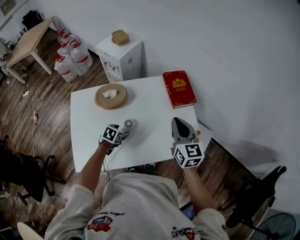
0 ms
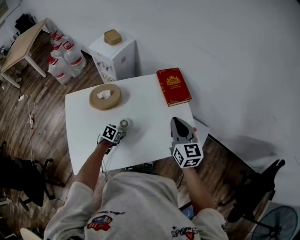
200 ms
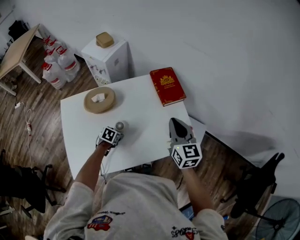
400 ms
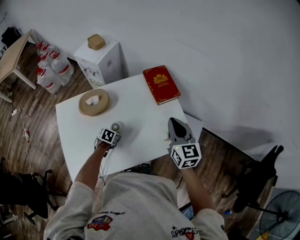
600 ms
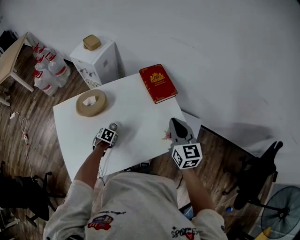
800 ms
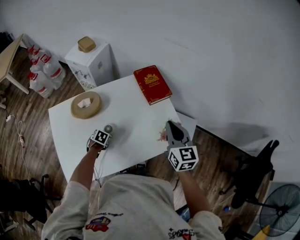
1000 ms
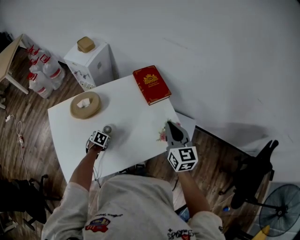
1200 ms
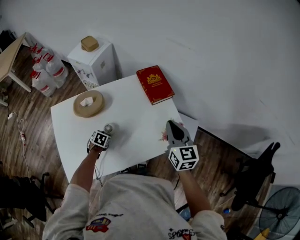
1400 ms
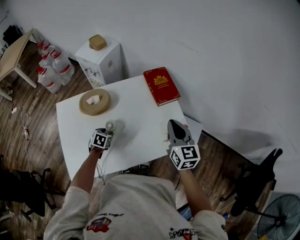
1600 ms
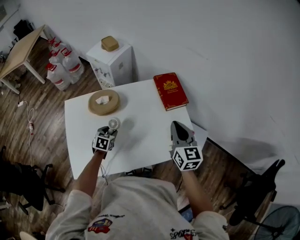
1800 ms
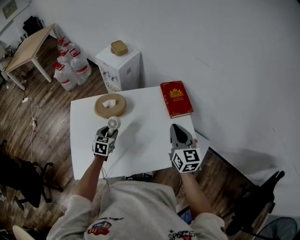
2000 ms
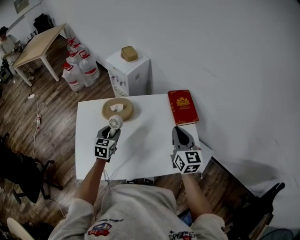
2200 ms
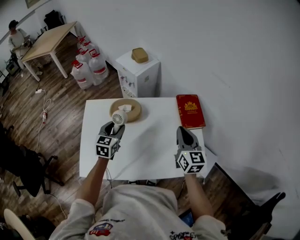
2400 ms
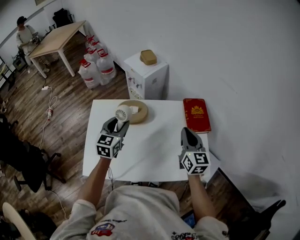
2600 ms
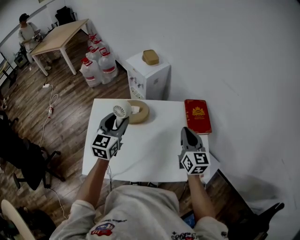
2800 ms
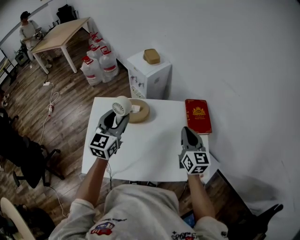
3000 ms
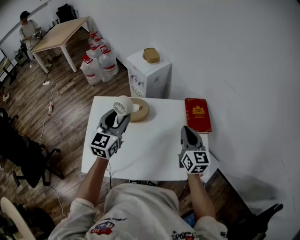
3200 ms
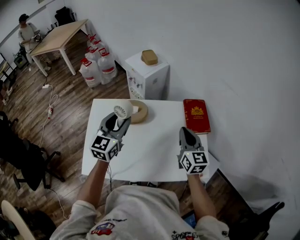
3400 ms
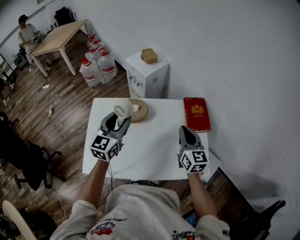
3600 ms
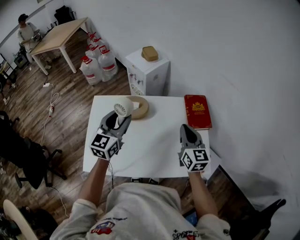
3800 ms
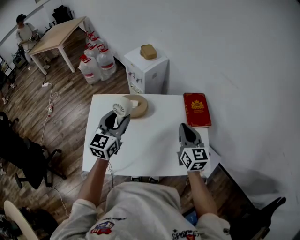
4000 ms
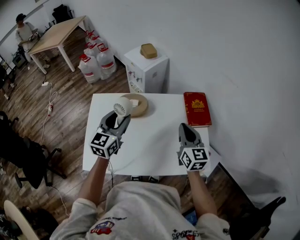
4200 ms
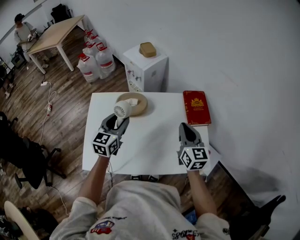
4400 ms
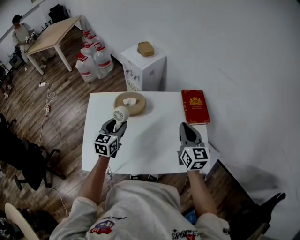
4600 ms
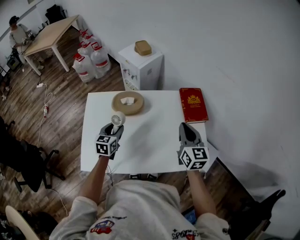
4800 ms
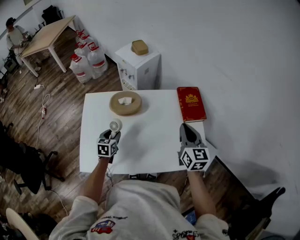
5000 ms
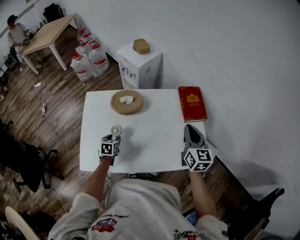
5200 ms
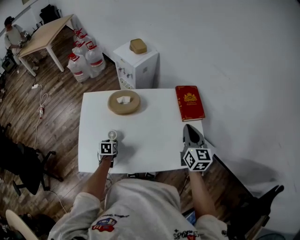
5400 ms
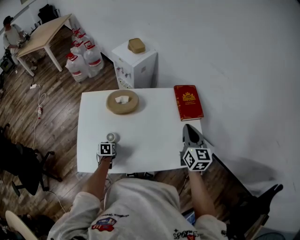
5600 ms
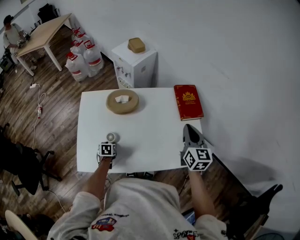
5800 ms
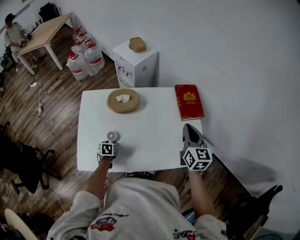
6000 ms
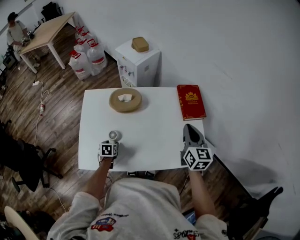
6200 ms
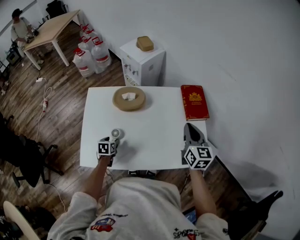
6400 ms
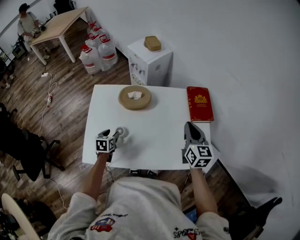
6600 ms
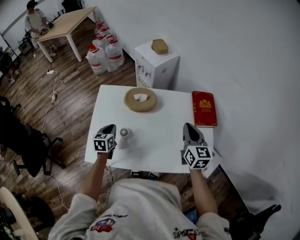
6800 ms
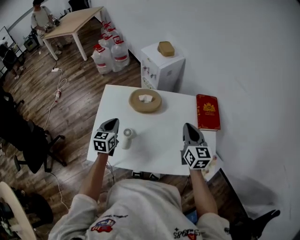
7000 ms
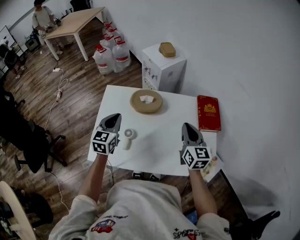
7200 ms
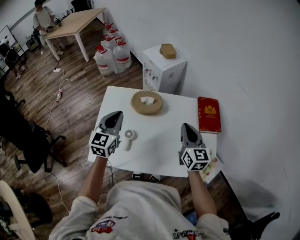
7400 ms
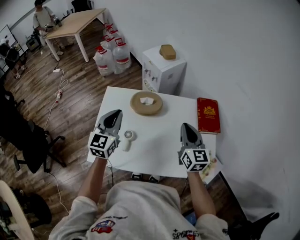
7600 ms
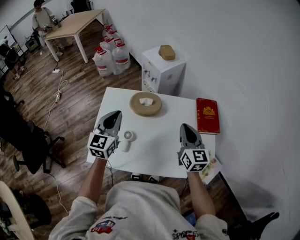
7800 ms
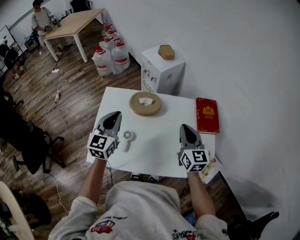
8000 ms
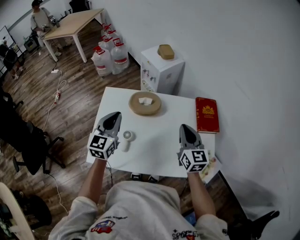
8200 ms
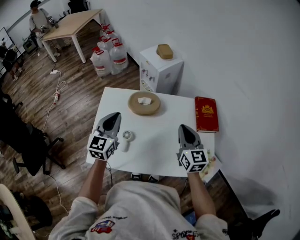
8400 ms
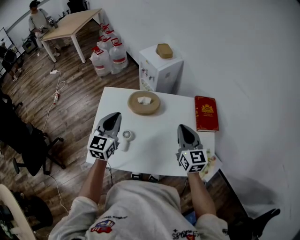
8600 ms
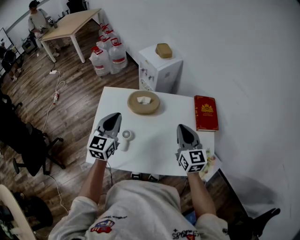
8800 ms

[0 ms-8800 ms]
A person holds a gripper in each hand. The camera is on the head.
0 ms to 1400 ms: The left gripper ends up about 5 cm from where it was, and closes, while the right gripper shifts by approximately 10 cm.
1400 ms to 3000 ms: The right gripper heads to the left and forward, covering approximately 15 cm; the left gripper travels upward by roughly 40 cm, and points its fingers approximately 60 degrees further upward.
3000 ms to 4400 ms: The left gripper moves downward, some 5 cm.
4400 ms to 5800 ms: The left gripper is displaced downward by some 30 cm, and tilts its fingers roughly 40 degrees downward. The right gripper moves to the right, roughly 5 cm.
5800 ms to 7400 ms: The right gripper shifts approximately 10 cm to the left; the left gripper moves upward, approximately 35 cm, points its fingers approximately 50 degrees further upward, and closes its fingers.
7400 ms to 8800 ms: The grippers make only small movements.

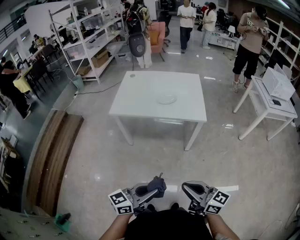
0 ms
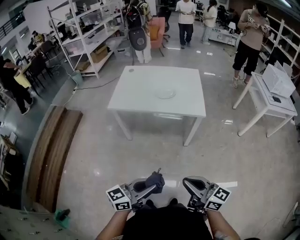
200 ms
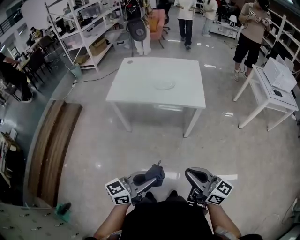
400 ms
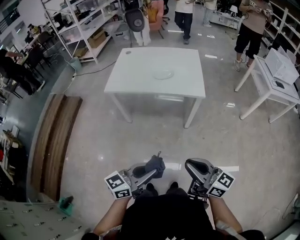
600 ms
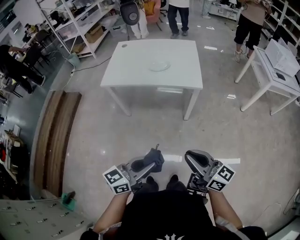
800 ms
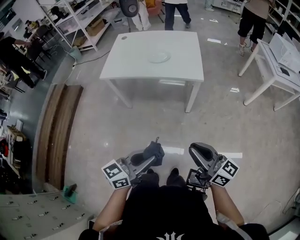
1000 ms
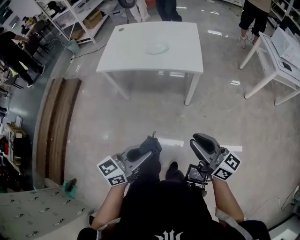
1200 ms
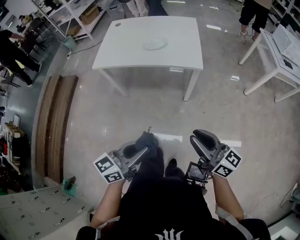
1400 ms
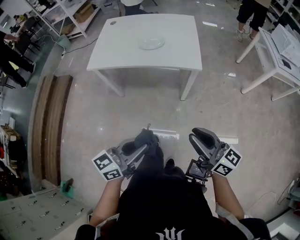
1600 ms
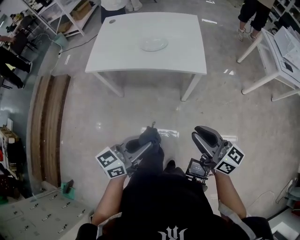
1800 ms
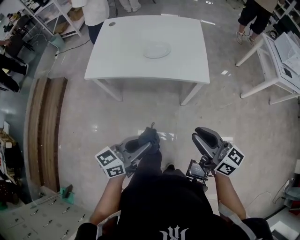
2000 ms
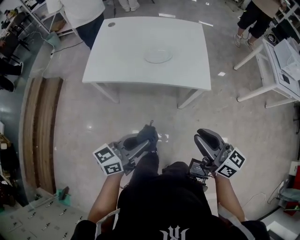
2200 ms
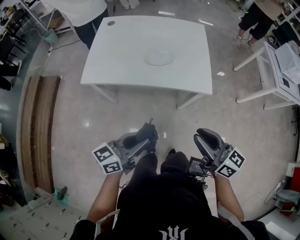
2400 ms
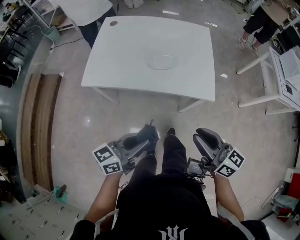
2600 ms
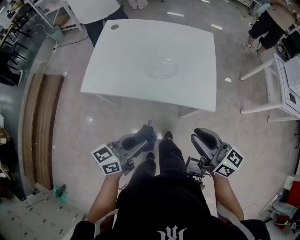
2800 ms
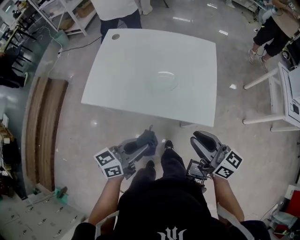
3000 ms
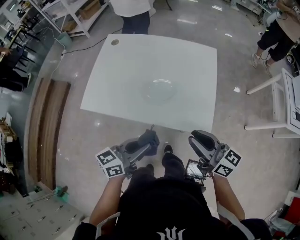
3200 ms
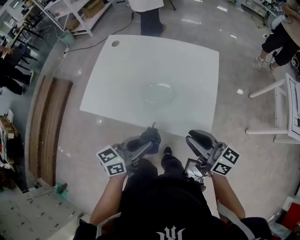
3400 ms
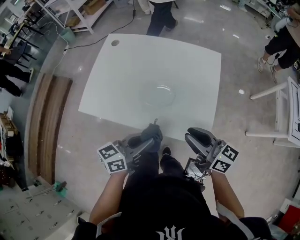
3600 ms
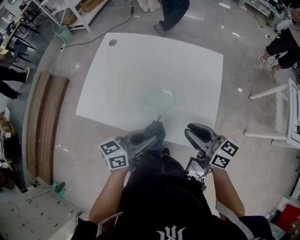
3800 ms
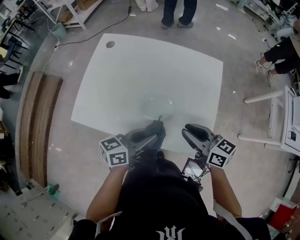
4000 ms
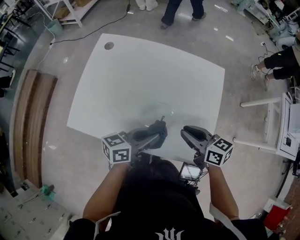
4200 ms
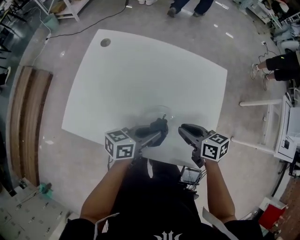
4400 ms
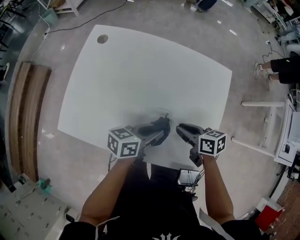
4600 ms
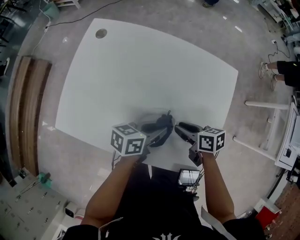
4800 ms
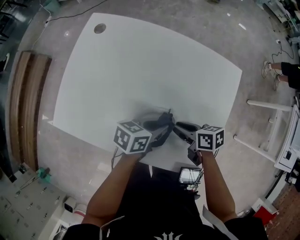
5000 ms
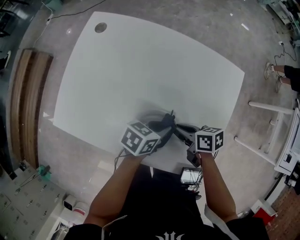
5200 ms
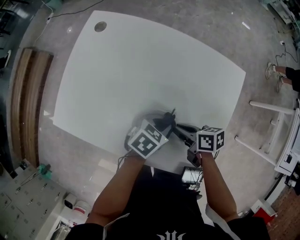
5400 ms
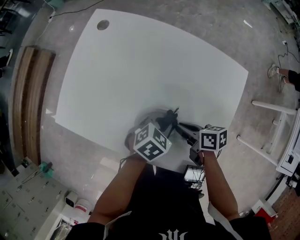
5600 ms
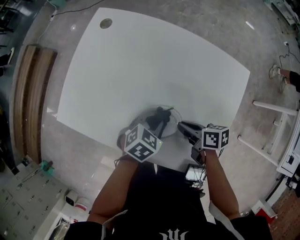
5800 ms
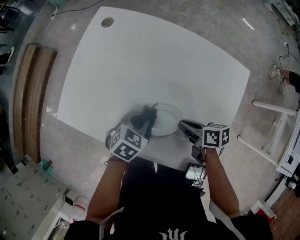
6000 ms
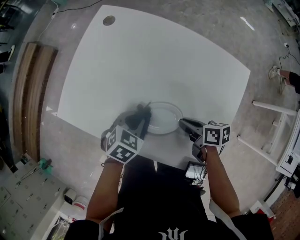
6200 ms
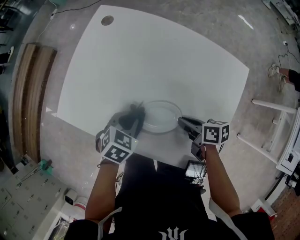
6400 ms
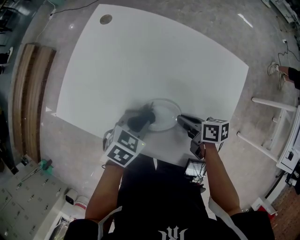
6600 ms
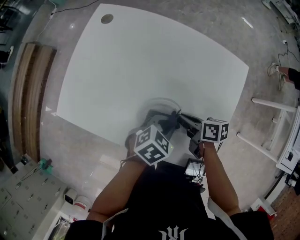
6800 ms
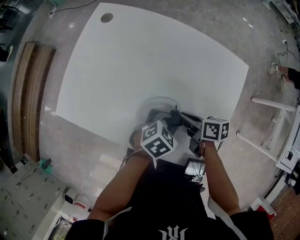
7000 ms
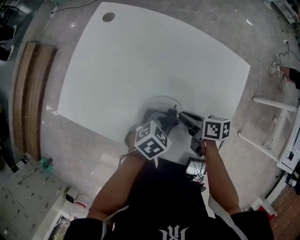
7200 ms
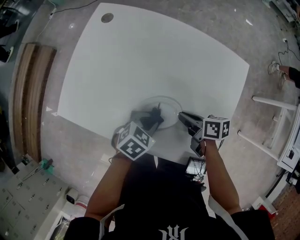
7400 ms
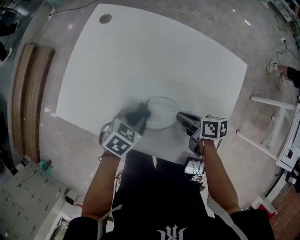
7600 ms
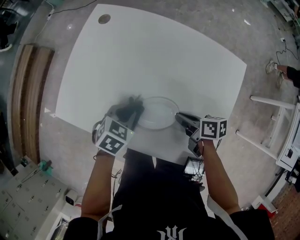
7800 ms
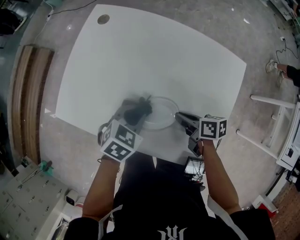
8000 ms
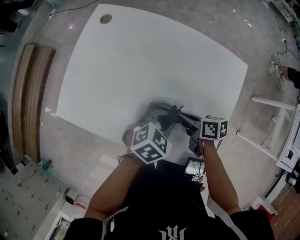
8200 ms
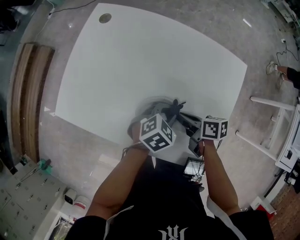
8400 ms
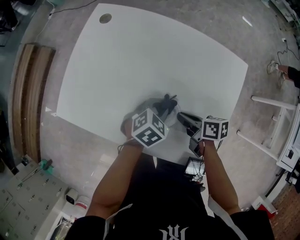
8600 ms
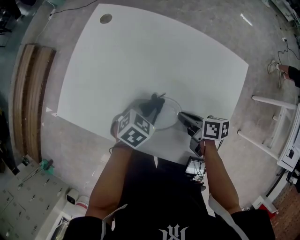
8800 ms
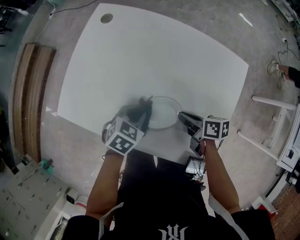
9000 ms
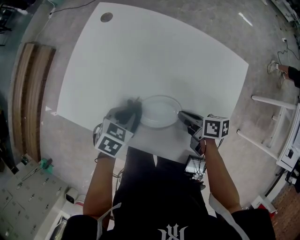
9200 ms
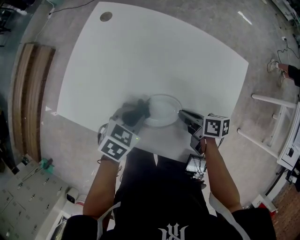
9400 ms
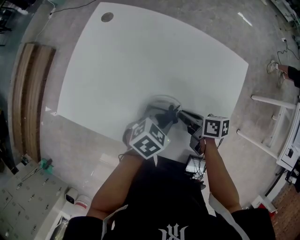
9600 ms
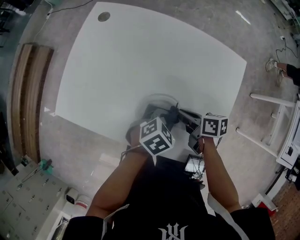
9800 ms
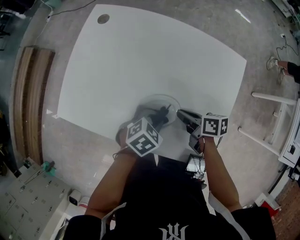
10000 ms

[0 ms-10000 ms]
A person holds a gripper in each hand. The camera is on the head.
0 ms to 1400 ms: The right gripper heads to the right and forward, covering about 15 cm. The left gripper heads to the right and forward, covering approximately 10 cm.
1400 ms to 2800 ms: Both grippers move forward, approximately 35 cm.
2800 ms to 4200 ms: Both grippers move forward, approximately 35 cm. The right gripper rotates some 20 degrees.
4200 ms to 5800 ms: Both grippers travel together downward, some 15 cm. The left gripper points its fingers about 50 degrees further downward. The right gripper rotates roughly 30 degrees.

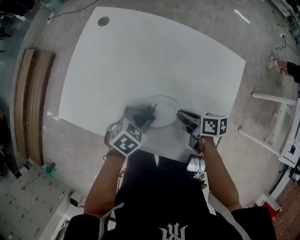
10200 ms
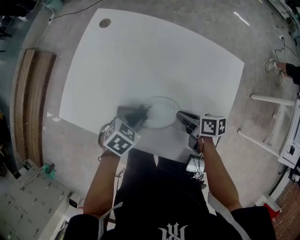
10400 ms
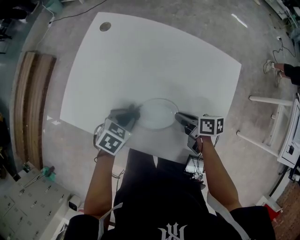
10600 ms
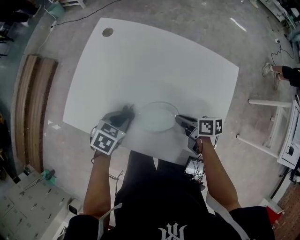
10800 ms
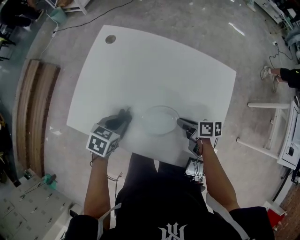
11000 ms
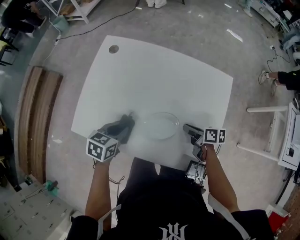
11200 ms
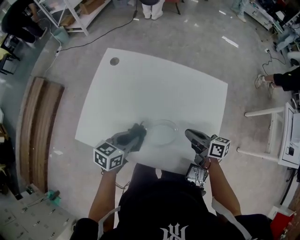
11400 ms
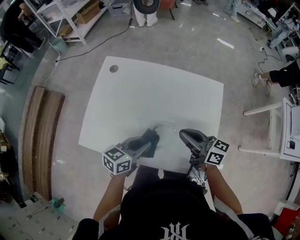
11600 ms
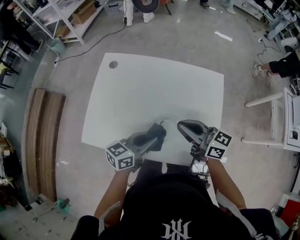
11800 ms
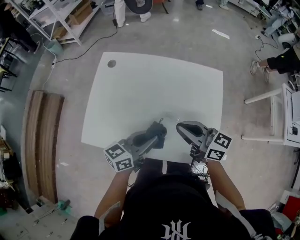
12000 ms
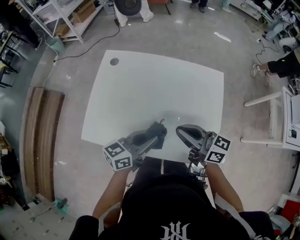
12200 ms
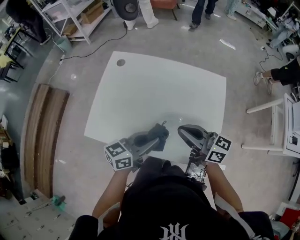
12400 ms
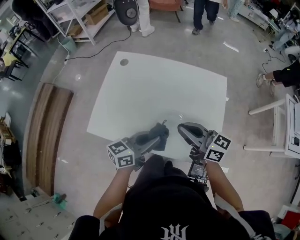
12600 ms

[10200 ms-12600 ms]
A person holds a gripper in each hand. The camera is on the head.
10200 ms to 11400 ms: Both grippers travel together upward, approximately 15 cm. The left gripper changes its angle by some 30 degrees; the right gripper rotates approximately 20 degrees.
11400 ms to 12600 ms: The left gripper is displaced backward, upward and to the right by about 15 cm, and rotates approximately 30 degrees. The right gripper moves upward, backward and to the left, about 20 cm, and swivels some 30 degrees.

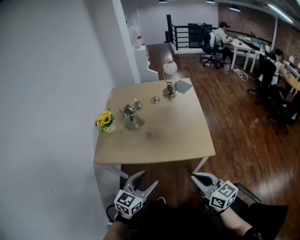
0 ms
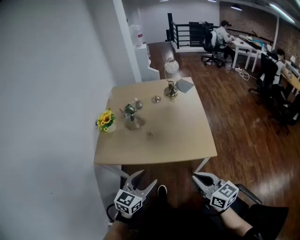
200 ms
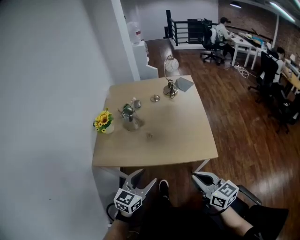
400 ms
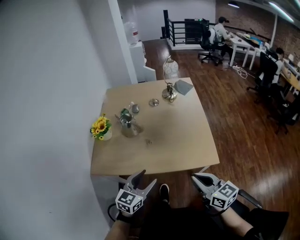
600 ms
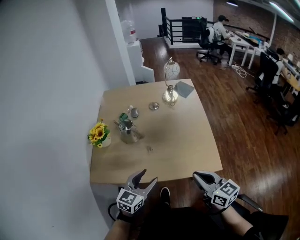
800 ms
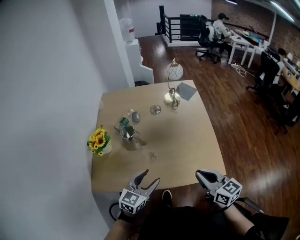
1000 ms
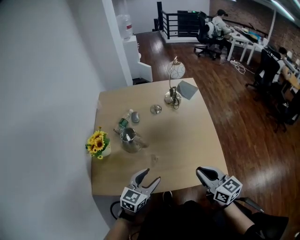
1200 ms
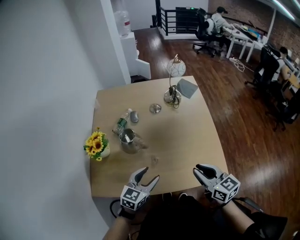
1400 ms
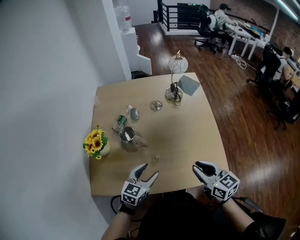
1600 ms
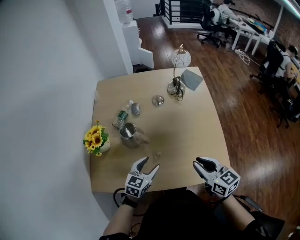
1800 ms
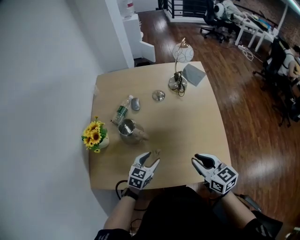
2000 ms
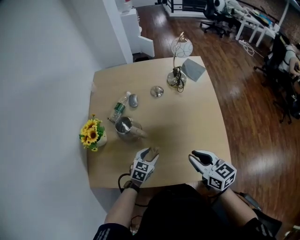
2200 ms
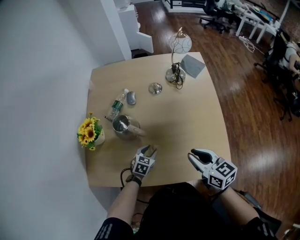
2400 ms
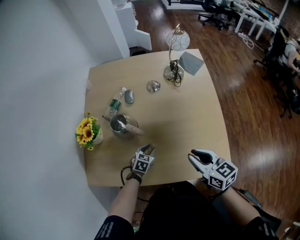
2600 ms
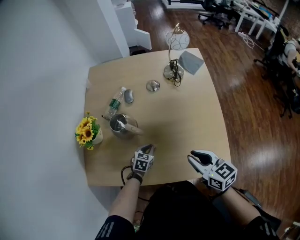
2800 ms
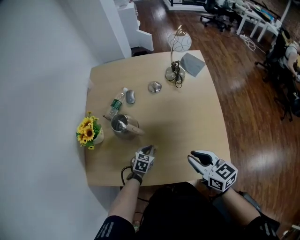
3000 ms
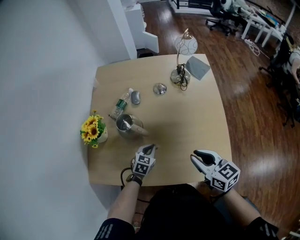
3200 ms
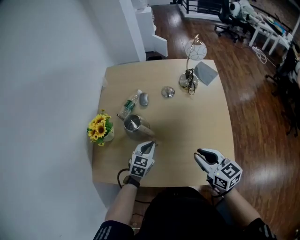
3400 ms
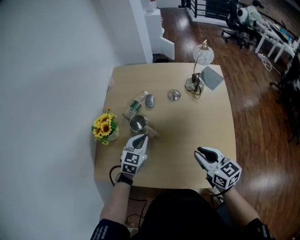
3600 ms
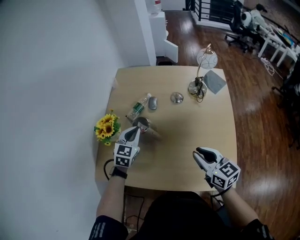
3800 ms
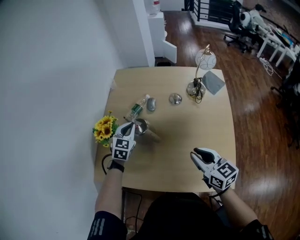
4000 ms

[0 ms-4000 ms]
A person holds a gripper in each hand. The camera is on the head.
0 ms to 1400 ms: The two grippers go roughly 30 cm forward.
1400 ms to 2600 ms: The right gripper is displaced forward and downward by roughly 10 cm. Meanwhile the left gripper goes roughly 25 cm downward and forward, turns by approximately 30 degrees, and closes up.
2600 ms to 4000 ms: The right gripper travels forward by roughly 5 cm. The left gripper heads upward, forward and to the left, covering roughly 30 cm, rotates approximately 30 degrees, and closes its fingers.
